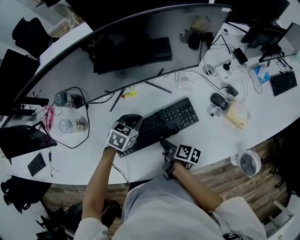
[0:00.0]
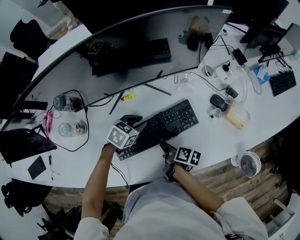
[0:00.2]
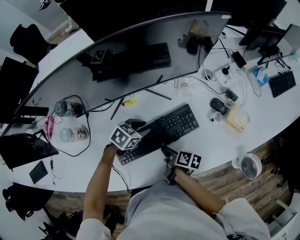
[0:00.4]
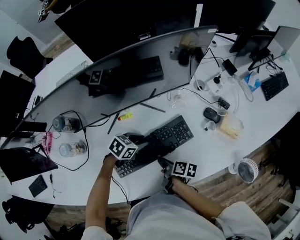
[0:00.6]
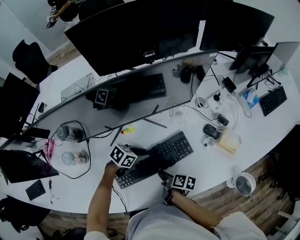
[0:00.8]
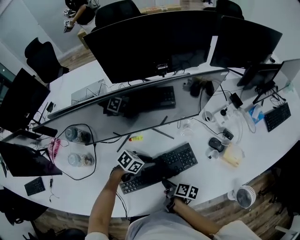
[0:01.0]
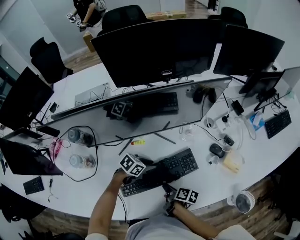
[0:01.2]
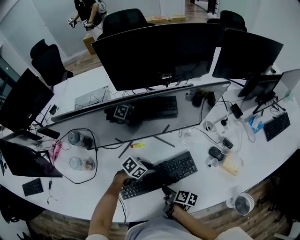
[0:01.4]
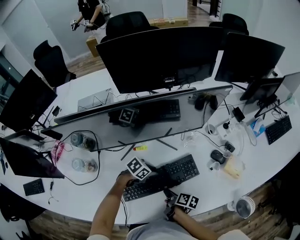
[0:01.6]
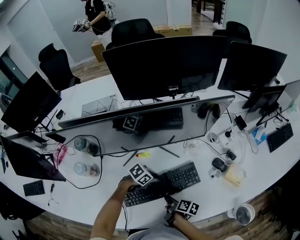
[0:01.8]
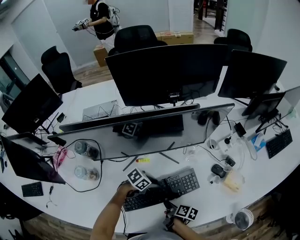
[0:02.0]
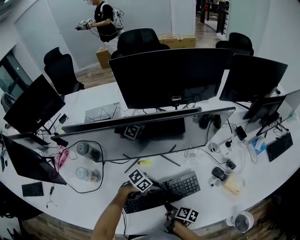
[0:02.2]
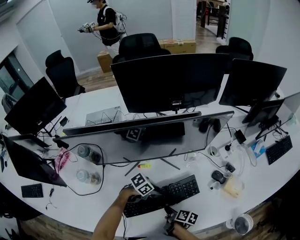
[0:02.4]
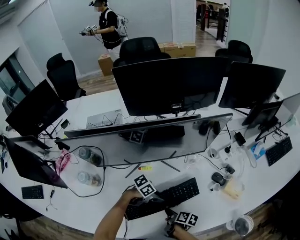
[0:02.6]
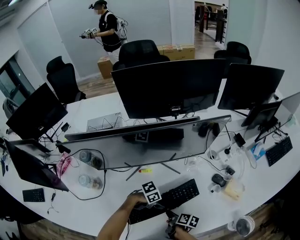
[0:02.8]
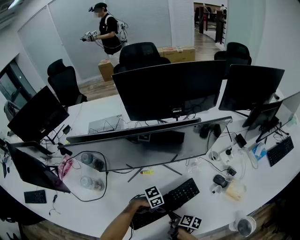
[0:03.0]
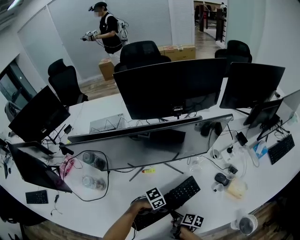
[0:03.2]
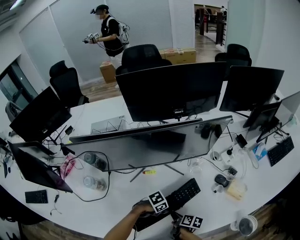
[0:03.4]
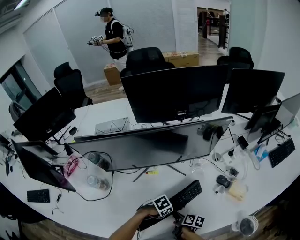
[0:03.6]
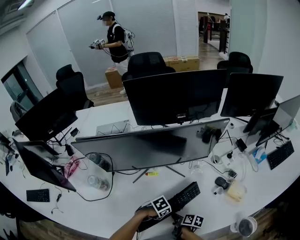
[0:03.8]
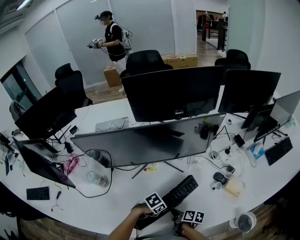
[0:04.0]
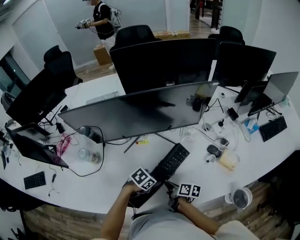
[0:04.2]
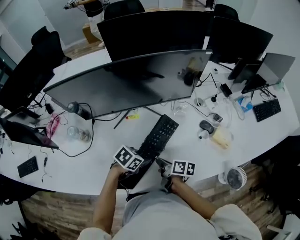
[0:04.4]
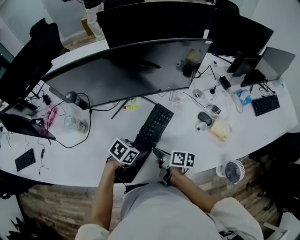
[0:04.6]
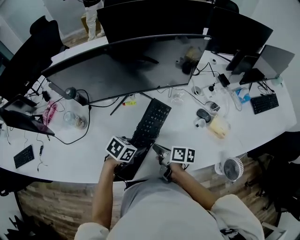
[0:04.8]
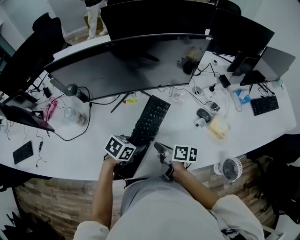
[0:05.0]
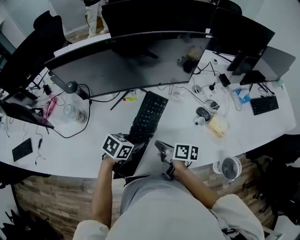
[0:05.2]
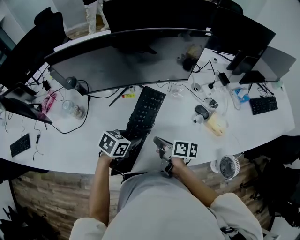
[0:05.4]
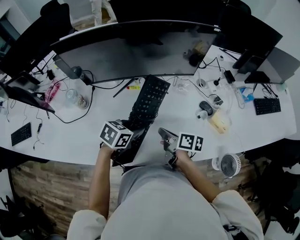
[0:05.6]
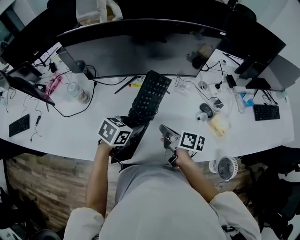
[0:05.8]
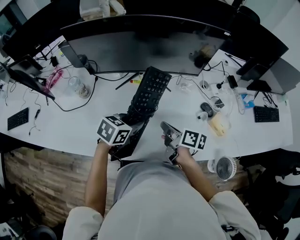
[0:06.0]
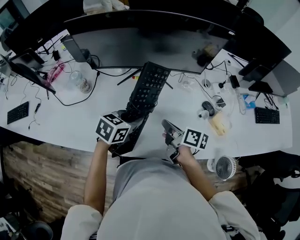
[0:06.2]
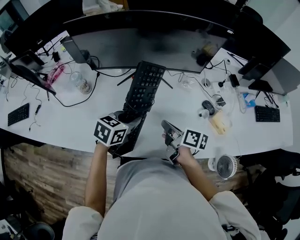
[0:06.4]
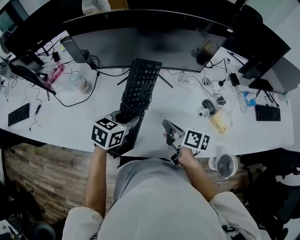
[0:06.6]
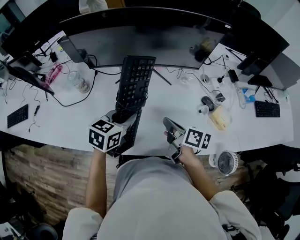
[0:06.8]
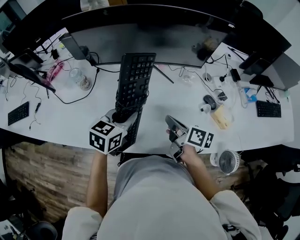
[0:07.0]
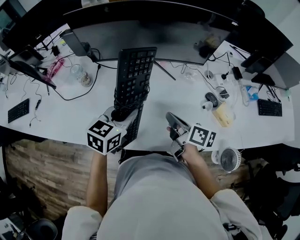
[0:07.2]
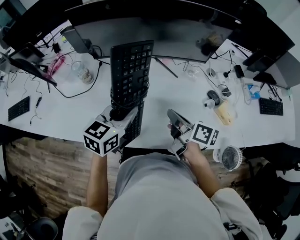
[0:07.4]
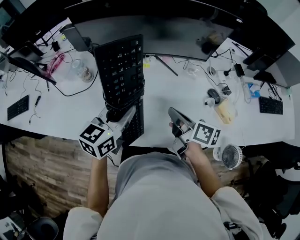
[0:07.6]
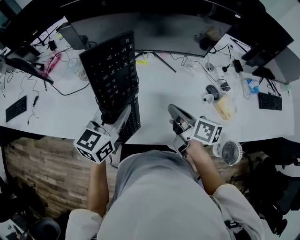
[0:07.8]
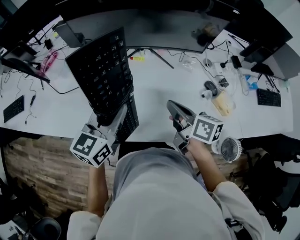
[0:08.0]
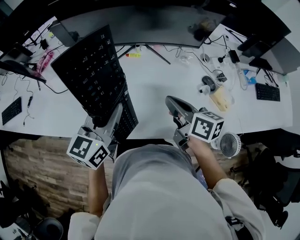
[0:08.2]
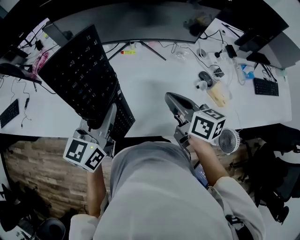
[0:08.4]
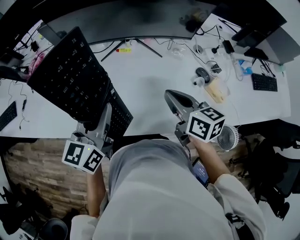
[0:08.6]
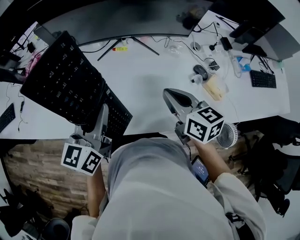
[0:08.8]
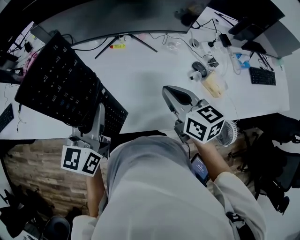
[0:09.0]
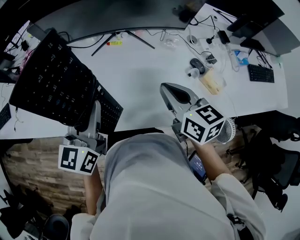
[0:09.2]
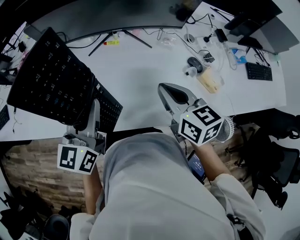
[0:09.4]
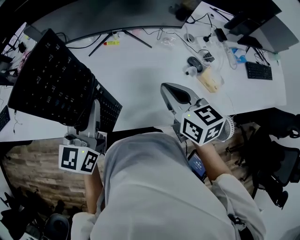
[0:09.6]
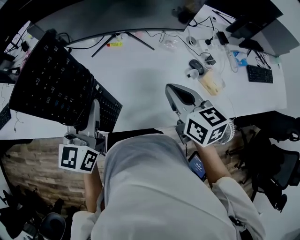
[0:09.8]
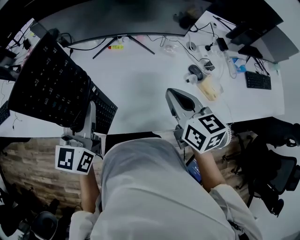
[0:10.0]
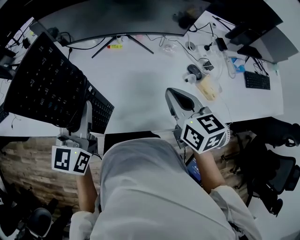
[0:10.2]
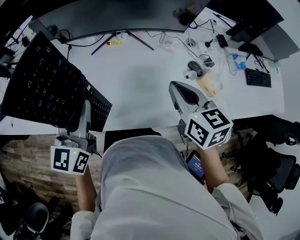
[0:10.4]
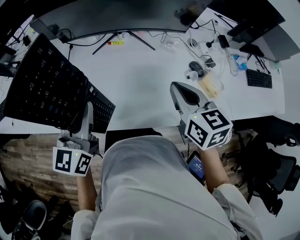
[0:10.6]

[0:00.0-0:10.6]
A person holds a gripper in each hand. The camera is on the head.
0:00.0 to 0:01.6: The left gripper ends up roughly 5 cm from where it was, and swivels approximately 30 degrees.
0:01.6 to 0:03.0: The left gripper ends up roughly 10 cm from where it was, and turns by some 20 degrees.
0:03.0 to 0:04.6: The two grippers go some 10 cm upward. The left gripper swivels some 40 degrees.
0:04.6 to 0:06.0: Both grippers move upward, about 5 cm. The left gripper swivels some 20 degrees.
0:06.0 to 0:07.6: The right gripper shifts some 5 cm upward, while the left gripper is displaced upward and to the left by about 10 cm, and turns by some 30 degrees.
0:07.6 to 0:09.0: The right gripper changes place by approximately 5 cm, and rotates roughly 30 degrees.
0:09.0 to 0:10.6: The right gripper moves approximately 5 cm.

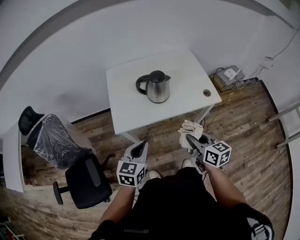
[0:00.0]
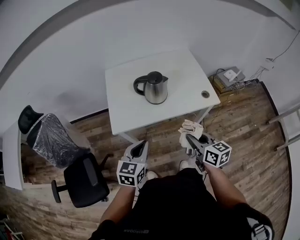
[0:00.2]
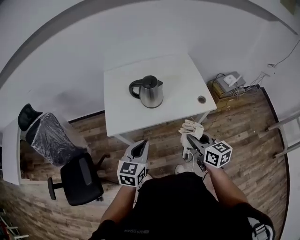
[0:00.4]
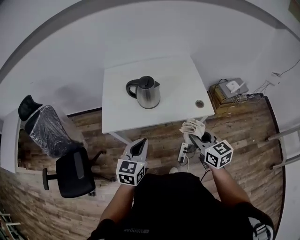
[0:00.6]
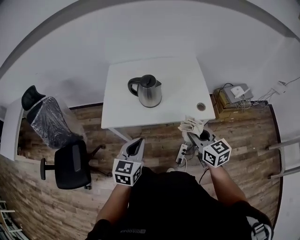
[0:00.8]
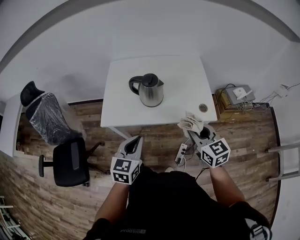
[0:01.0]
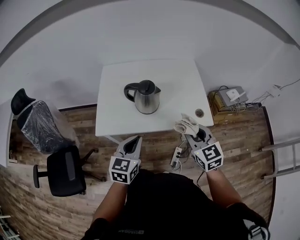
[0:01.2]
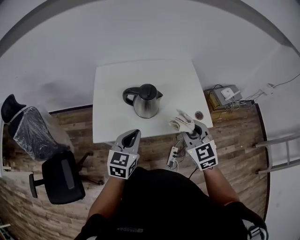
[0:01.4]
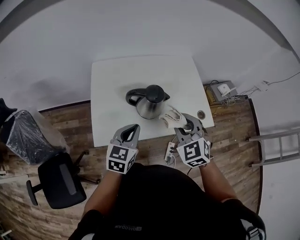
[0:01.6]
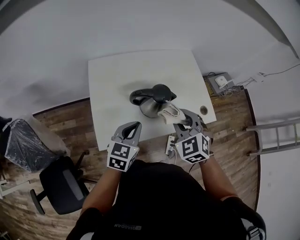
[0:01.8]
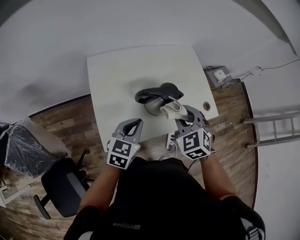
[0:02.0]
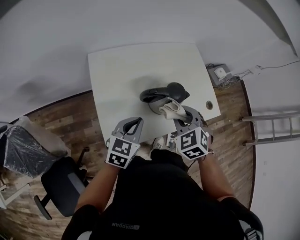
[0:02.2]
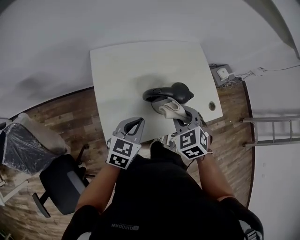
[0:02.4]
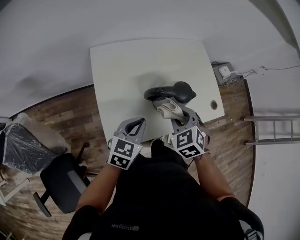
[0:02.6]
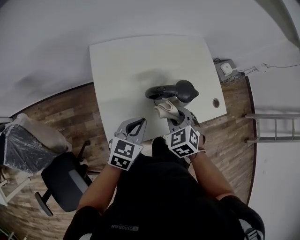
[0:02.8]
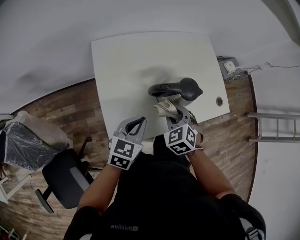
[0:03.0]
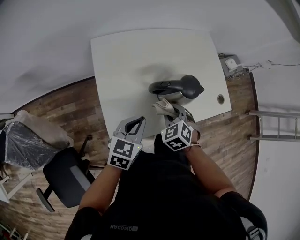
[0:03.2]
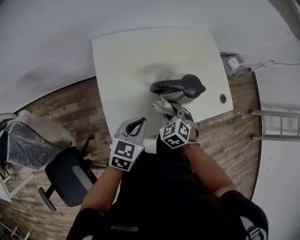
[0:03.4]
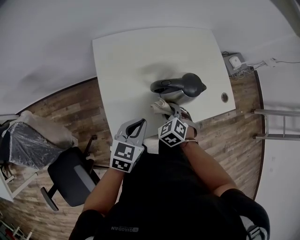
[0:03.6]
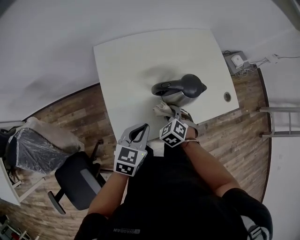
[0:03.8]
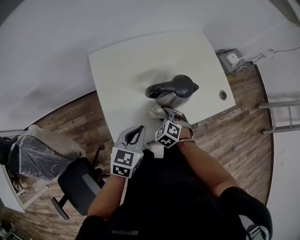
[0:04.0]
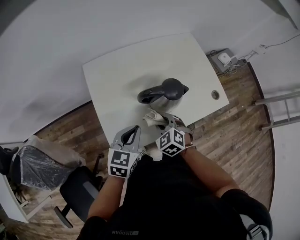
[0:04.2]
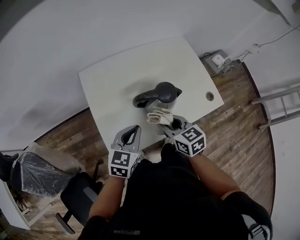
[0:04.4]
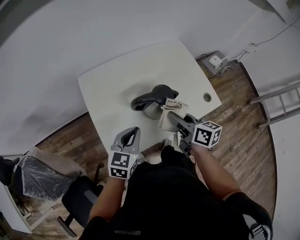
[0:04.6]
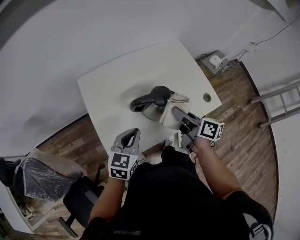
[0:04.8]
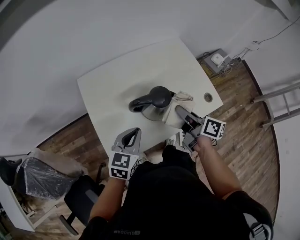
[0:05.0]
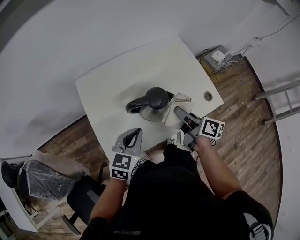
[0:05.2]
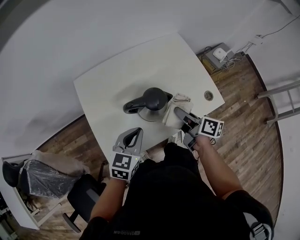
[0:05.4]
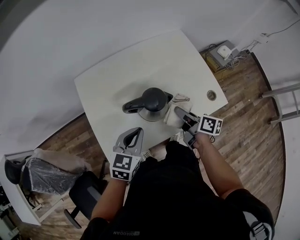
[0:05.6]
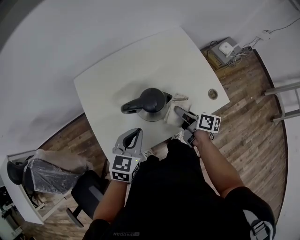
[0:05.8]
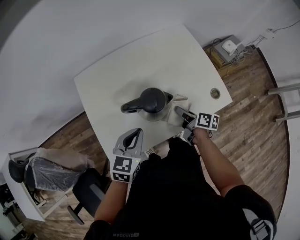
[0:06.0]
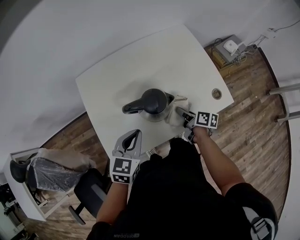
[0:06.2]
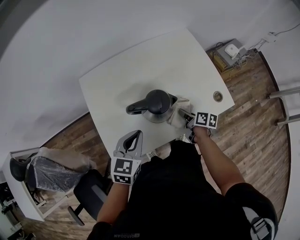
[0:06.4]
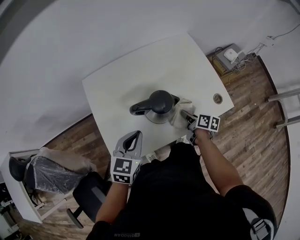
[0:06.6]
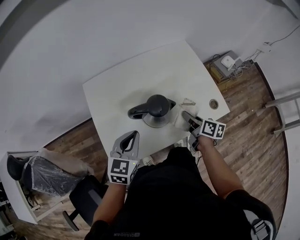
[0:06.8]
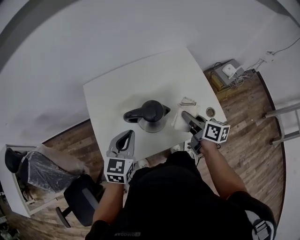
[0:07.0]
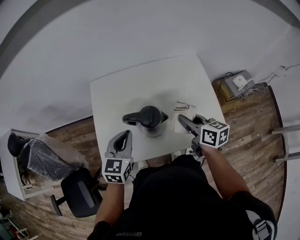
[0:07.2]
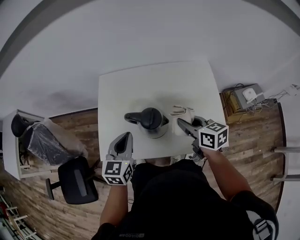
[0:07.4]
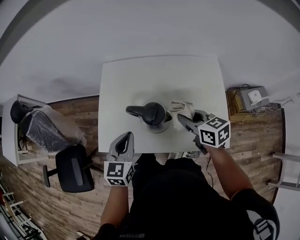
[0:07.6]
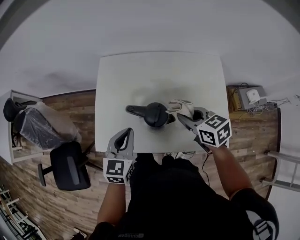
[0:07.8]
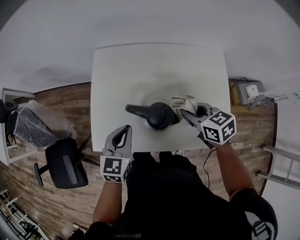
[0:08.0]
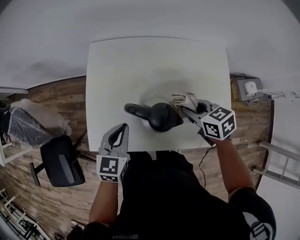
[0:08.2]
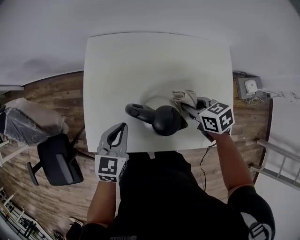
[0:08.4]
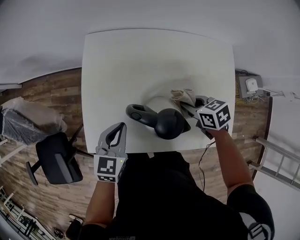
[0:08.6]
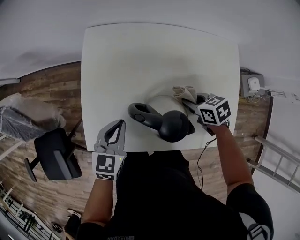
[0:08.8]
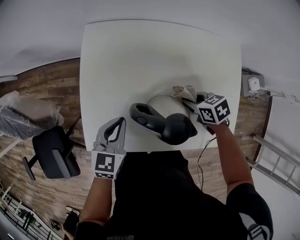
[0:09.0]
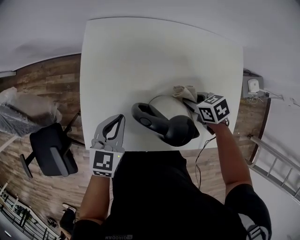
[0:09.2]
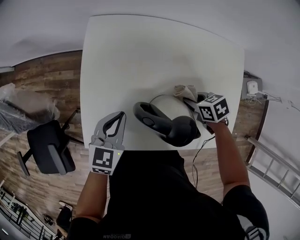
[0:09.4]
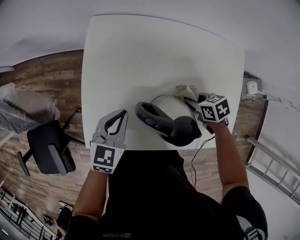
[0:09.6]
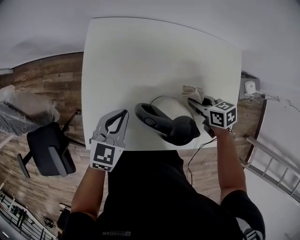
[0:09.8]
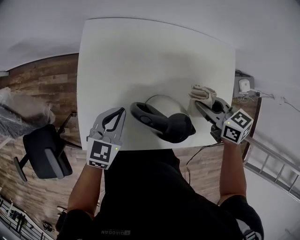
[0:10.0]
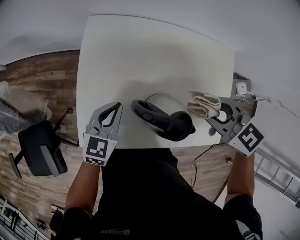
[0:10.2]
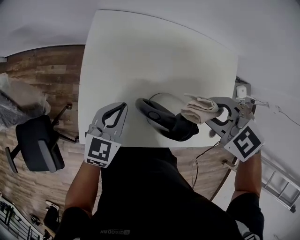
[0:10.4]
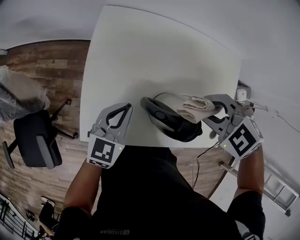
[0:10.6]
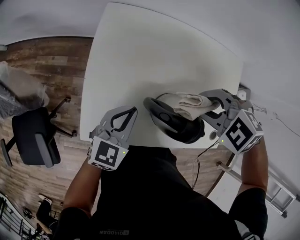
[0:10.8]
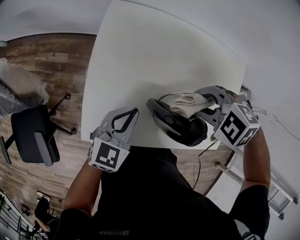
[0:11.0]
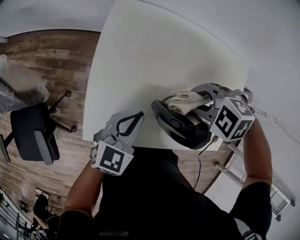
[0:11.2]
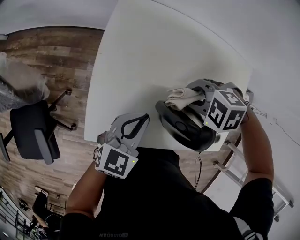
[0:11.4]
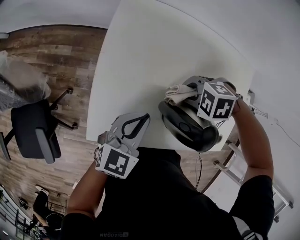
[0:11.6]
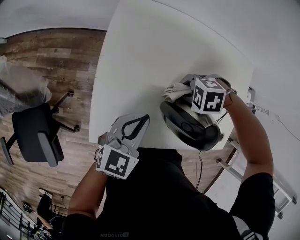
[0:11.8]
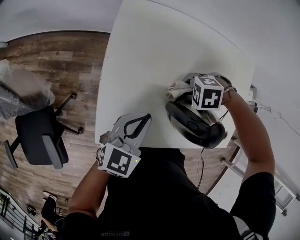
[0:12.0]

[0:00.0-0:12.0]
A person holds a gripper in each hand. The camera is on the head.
0:00.0 to 0:01.6: The two grippers go roughly 20 cm forward. The right gripper rolls counterclockwise, seen from behind, by about 60 degrees.
0:01.6 to 0:03.0: The left gripper travels to the left and downward by some 15 cm; the right gripper moves downward and to the left, about 20 cm, and changes its angle by some 30 degrees.
0:03.0 to 0:04.4: The right gripper travels downward and back again, about 10 cm each way, and rolls clockwise, seen from behind, by roughly 40 degrees.
0:04.4 to 0:06.0: The right gripper is displaced to the right, downward and forward by some 20 cm, and rotates around the line of its fingers by about 50 degrees, clockwise from behind, while the left gripper travels to the right by roughly 5 cm.
0:06.0 to 0:07.6: The left gripper changes its angle by some 40 degrees, while the right gripper shifts approximately 15 cm upward, and rolls counterclockwise, seen from behind, by about 50 degrees.
0:07.6 to 0:09.0: Both grippers move downward and forward, about 20 cm. The right gripper changes its angle by some 30 degrees.
0:09.0 to 0:10.4: The right gripper travels upward by some 20 cm, and rolls counterclockwise, seen from behind, by some 50 degrees.
0:10.4 to 0:12.0: The right gripper shifts about 20 cm downward, and turns by some 40 degrees.

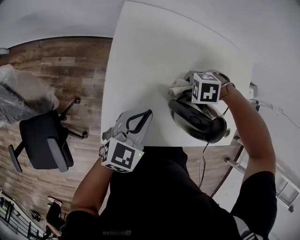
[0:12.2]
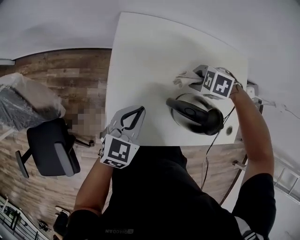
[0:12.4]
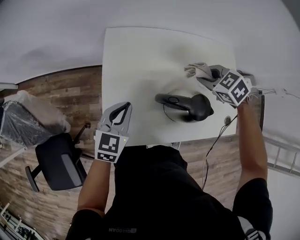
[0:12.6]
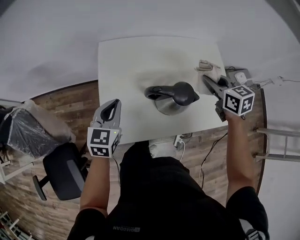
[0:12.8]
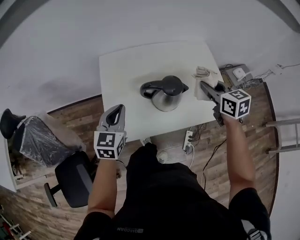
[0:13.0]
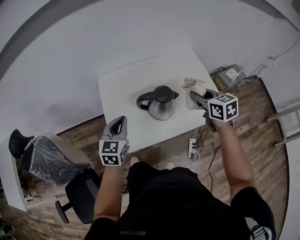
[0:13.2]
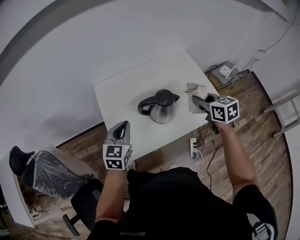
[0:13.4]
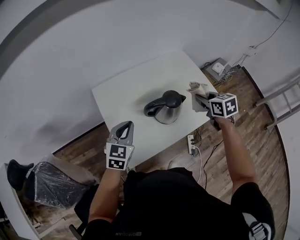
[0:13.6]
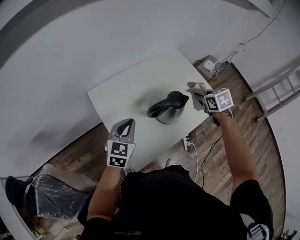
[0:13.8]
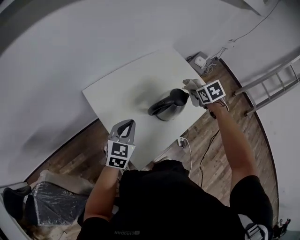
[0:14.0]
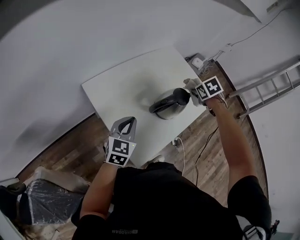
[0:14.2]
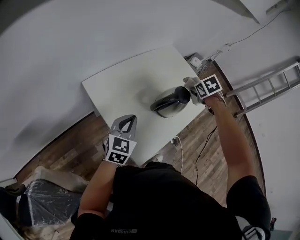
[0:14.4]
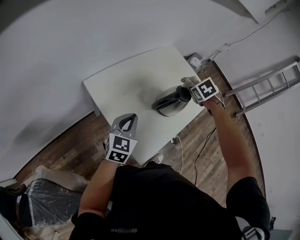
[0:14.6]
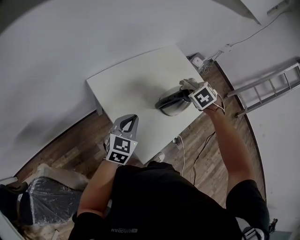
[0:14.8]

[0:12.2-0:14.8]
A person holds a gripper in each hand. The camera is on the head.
0:12.2 to 0:13.4: The left gripper goes some 15 cm upward; the right gripper goes roughly 30 cm upward, and tips its fingers upward by some 40 degrees.
0:13.4 to 0:14.8: The right gripper moves some 15 cm, and changes its angle by about 60 degrees, while the left gripper ends up about 10 cm from where it was, and changes its angle by some 30 degrees.
